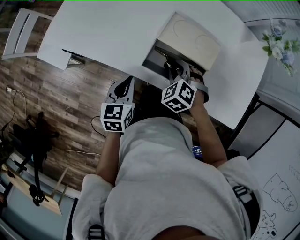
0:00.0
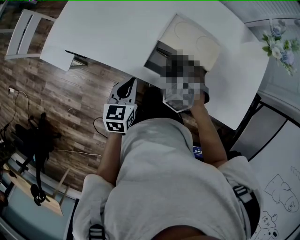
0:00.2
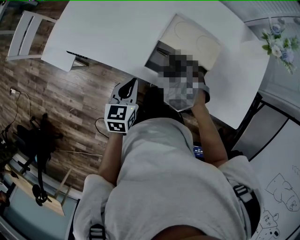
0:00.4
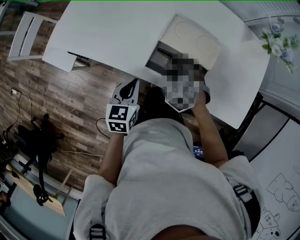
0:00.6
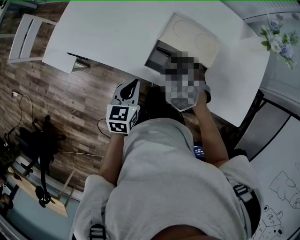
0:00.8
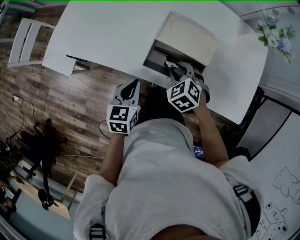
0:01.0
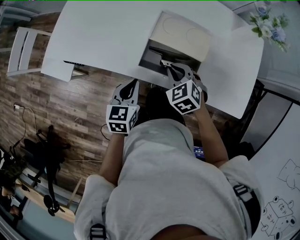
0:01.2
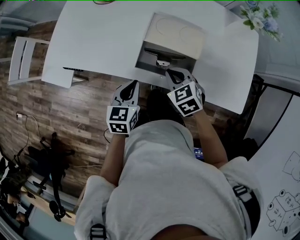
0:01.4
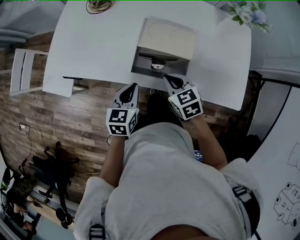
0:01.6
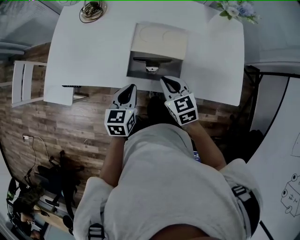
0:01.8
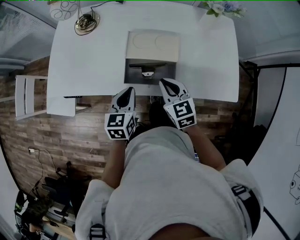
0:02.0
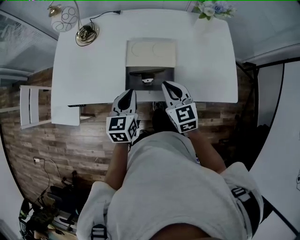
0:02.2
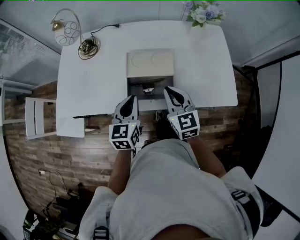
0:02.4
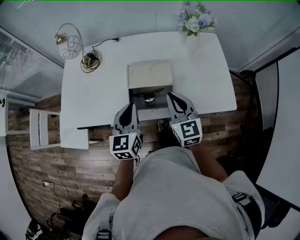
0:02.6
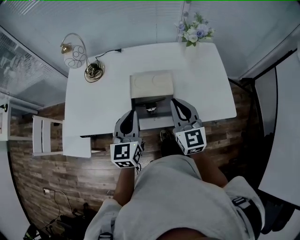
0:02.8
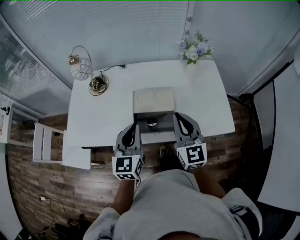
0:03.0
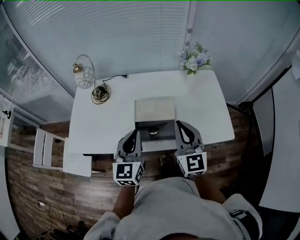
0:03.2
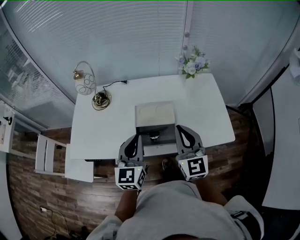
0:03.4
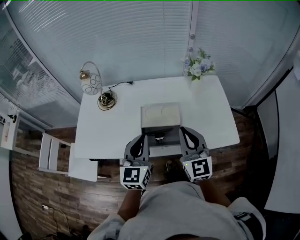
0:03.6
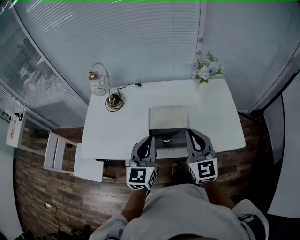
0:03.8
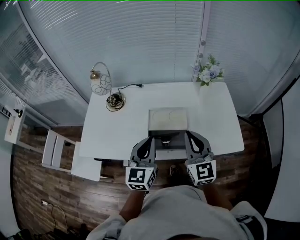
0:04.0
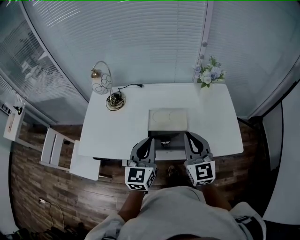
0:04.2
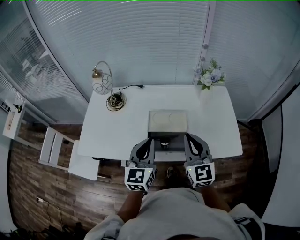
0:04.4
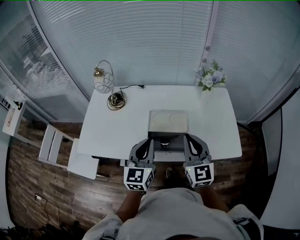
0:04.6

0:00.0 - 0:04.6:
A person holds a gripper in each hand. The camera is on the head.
0:00.0 - 0:01.6: The left gripper travels to the right by approximately 5 cm. The right gripper moves upward and backward, about 10 cm, rolls clockwise, seen from behind, by roughly 40 degrees, and closes up.
0:01.6 - 0:03.0: The grippers both shift upward by roughly 20 cm. The left gripper turns by roughly 30 degrees; the right gripper angles its fingers upward, by about 40 degrees.
0:03.0 - 0:04.6: The grippers move only a little.

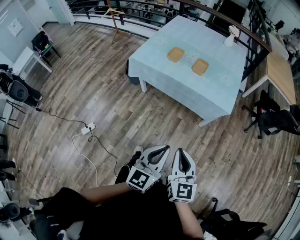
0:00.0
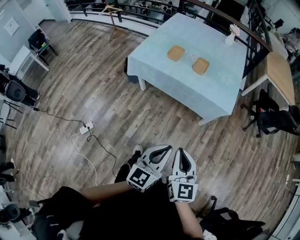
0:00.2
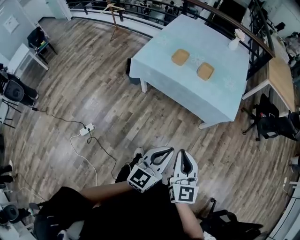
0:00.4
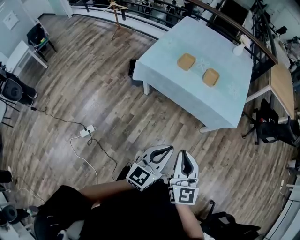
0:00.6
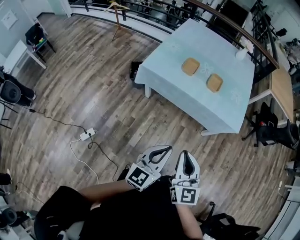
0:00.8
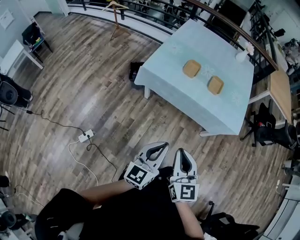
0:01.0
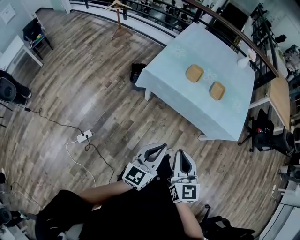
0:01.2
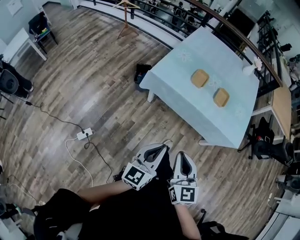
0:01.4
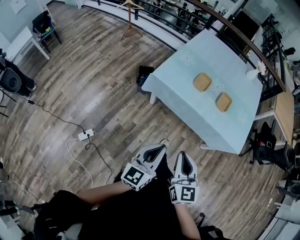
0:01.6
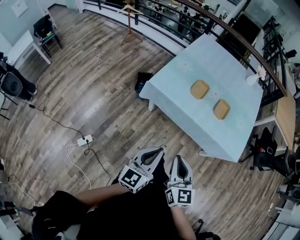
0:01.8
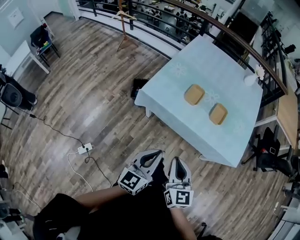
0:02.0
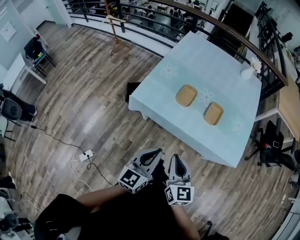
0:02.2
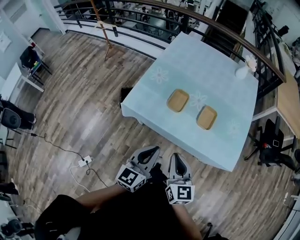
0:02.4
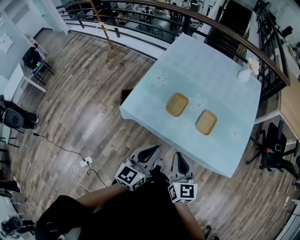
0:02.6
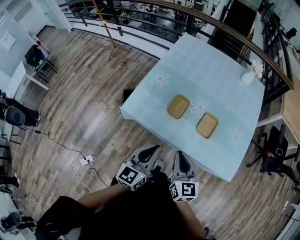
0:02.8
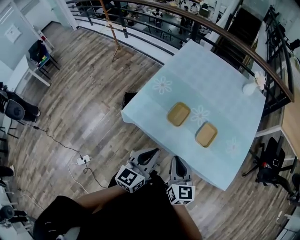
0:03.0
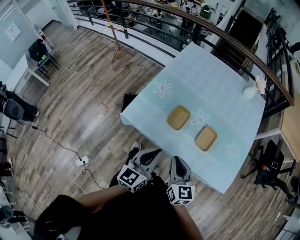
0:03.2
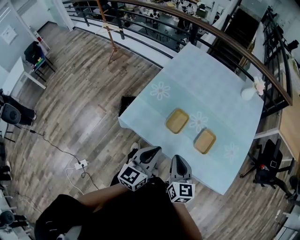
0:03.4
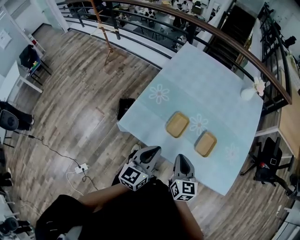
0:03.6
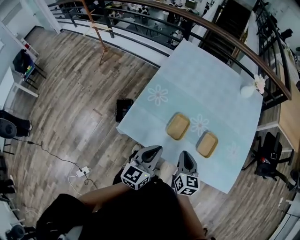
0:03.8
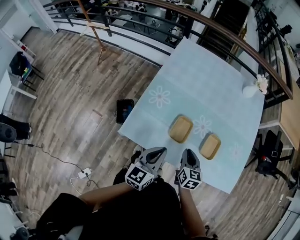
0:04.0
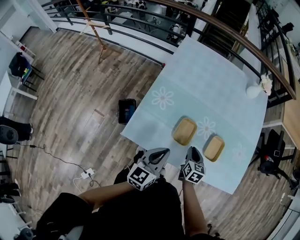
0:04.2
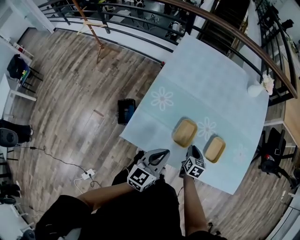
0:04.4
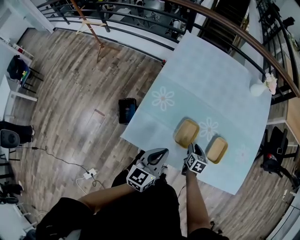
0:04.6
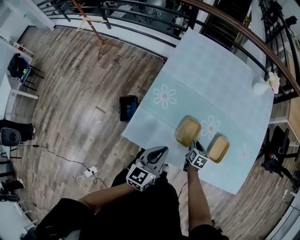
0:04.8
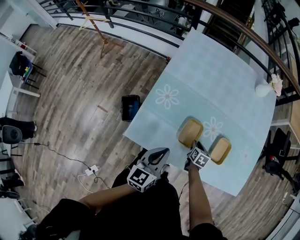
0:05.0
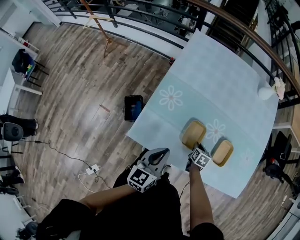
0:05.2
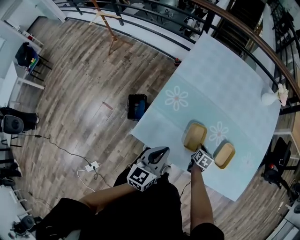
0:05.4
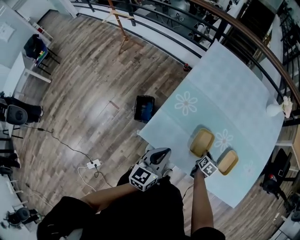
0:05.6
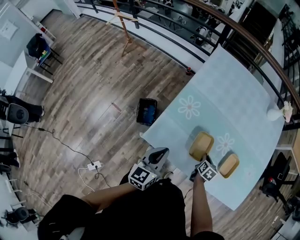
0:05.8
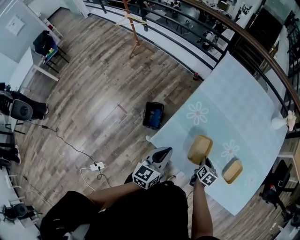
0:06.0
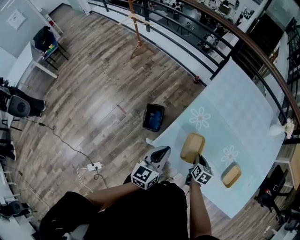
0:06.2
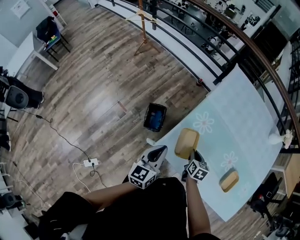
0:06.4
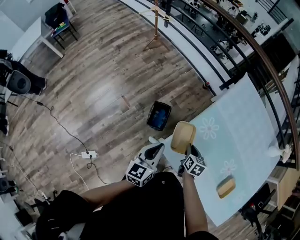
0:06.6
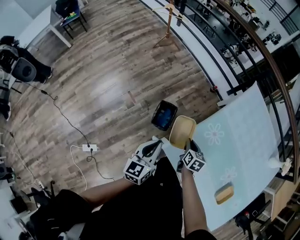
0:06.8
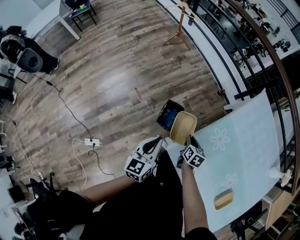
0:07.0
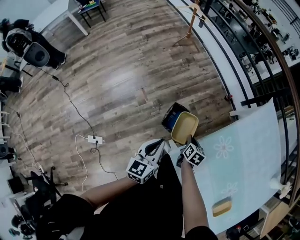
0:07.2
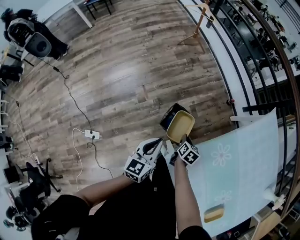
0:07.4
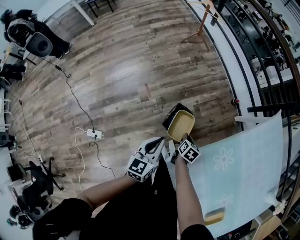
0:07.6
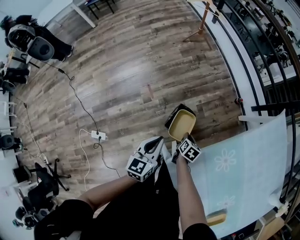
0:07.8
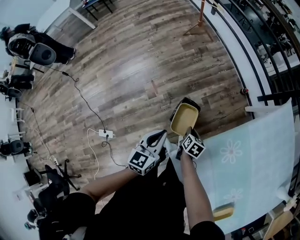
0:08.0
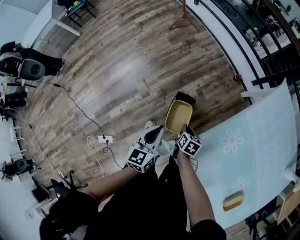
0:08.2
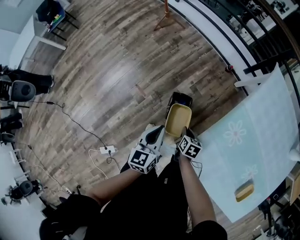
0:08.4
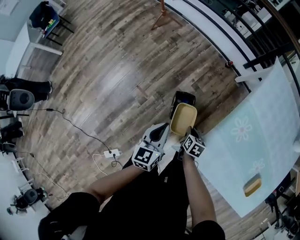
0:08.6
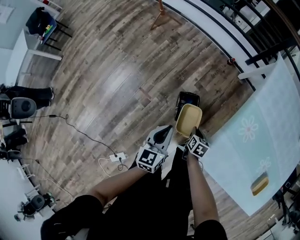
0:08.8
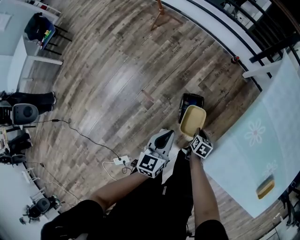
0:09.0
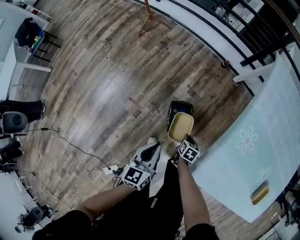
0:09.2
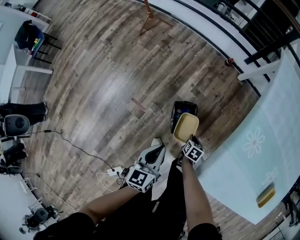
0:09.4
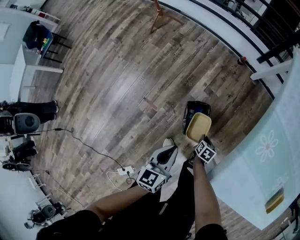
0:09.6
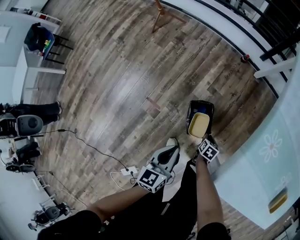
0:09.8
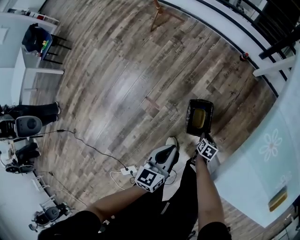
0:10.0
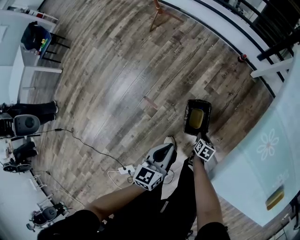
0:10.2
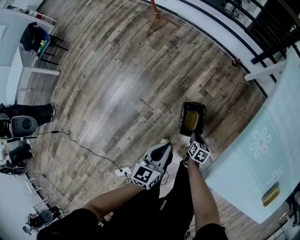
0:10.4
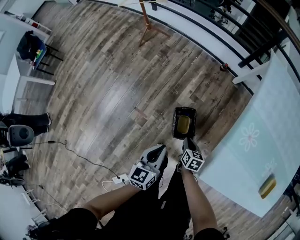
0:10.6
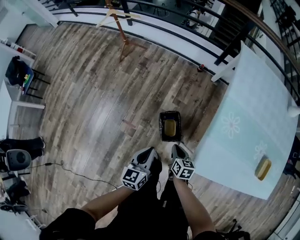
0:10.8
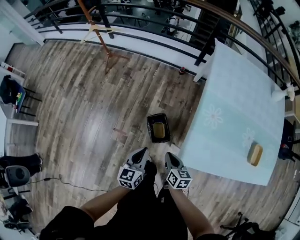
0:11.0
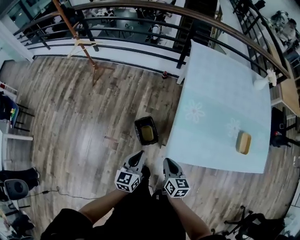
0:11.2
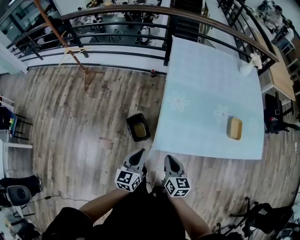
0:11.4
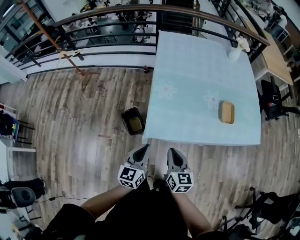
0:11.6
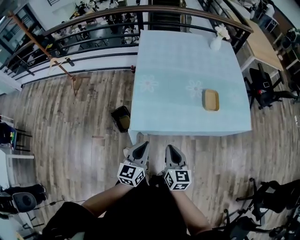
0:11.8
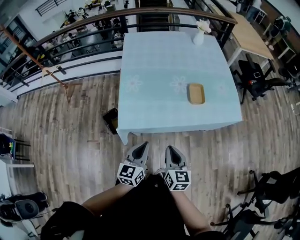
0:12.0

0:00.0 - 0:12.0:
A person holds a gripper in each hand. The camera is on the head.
0:00.0 - 0:01.6: Both grippers travel together to the left and forward, approximately 30 cm.
0:01.6 - 0:03.0: Both grippers travel together forward and to the right, roughly 35 cm.
0:03.0 - 0:04.4: The left gripper moves forward and to the left, roughly 20 cm; the right gripper travels downward and forward by approximately 30 cm, and swivels roughly 40 degrees.
0:04.4 - 0:06.0: The left gripper is displaced to the left by some 15 cm. The right gripper shifts roughly 10 cm to the left.
0:06.0 - 0:07.6: The left gripper ends up some 30 cm from where it was, and rotates some 30 degrees. The right gripper ends up about 50 cm from where it was, and changes its angle by about 30 degrees.
0:07.6 - 0:09.0: The left gripper moves about 15 cm, and turns by about 20 degrees, while the right gripper travels downward by about 10 cm, and turns by roughly 20 degrees.
0:09.0 - 0:10.4: Both grippers travel together downward, roughly 5 cm.
0:10.4 - 0:12.0: Both grippers are carried approximately 50 cm. The left gripper rotates about 40 degrees, while the right gripper tips its fingers upward by roughly 40 degrees.

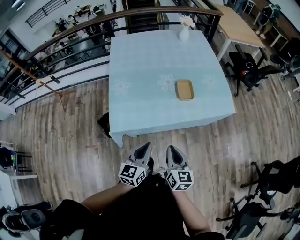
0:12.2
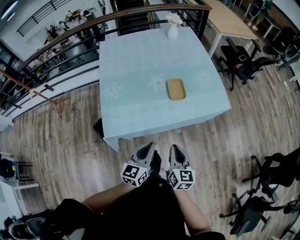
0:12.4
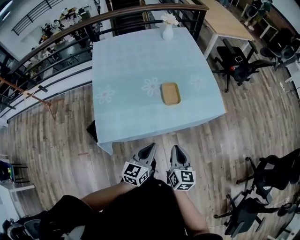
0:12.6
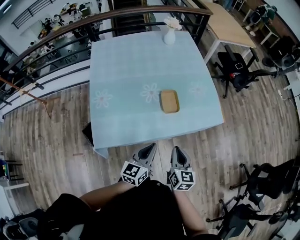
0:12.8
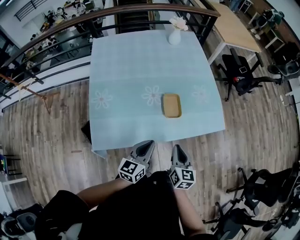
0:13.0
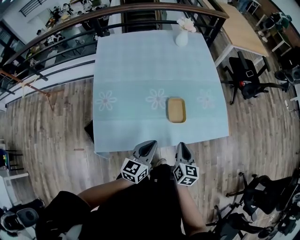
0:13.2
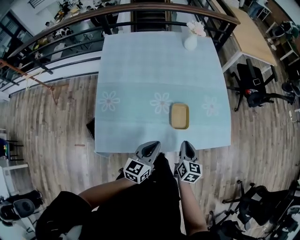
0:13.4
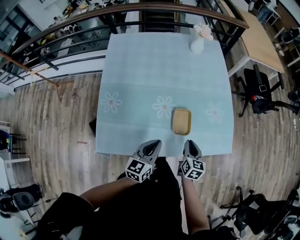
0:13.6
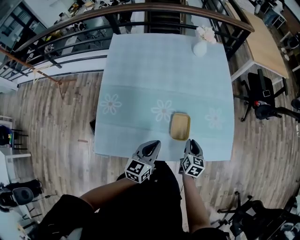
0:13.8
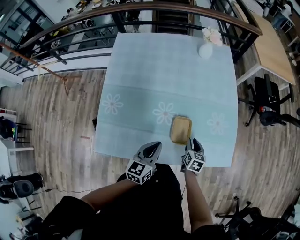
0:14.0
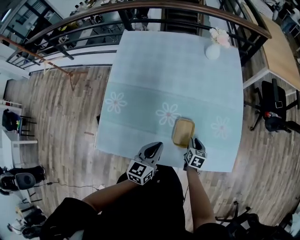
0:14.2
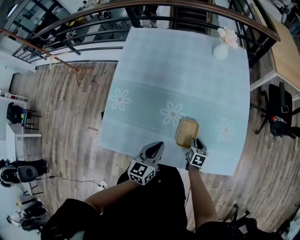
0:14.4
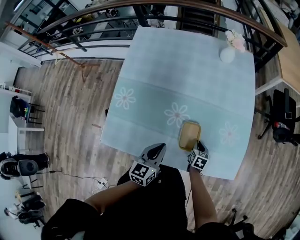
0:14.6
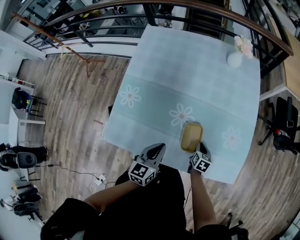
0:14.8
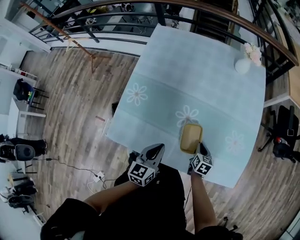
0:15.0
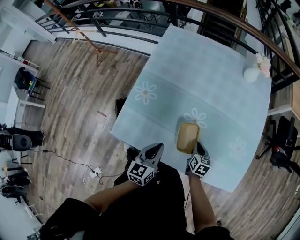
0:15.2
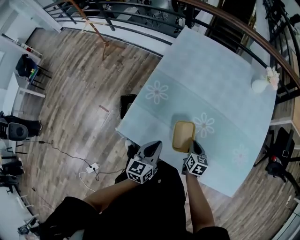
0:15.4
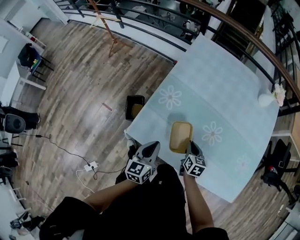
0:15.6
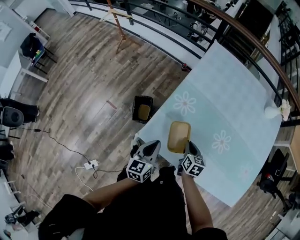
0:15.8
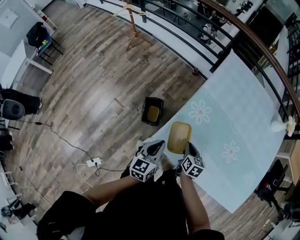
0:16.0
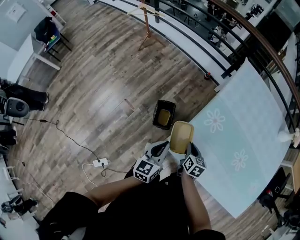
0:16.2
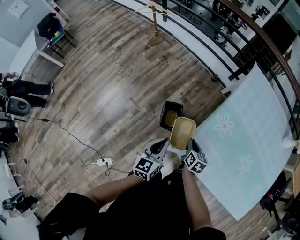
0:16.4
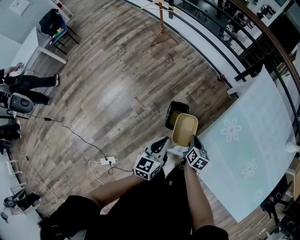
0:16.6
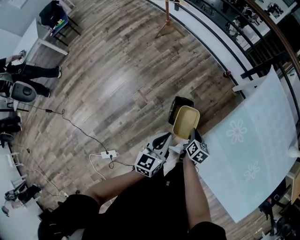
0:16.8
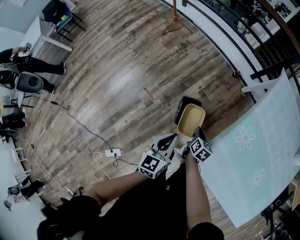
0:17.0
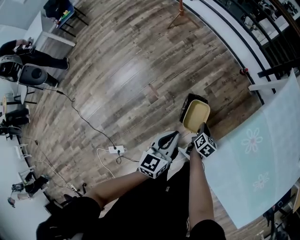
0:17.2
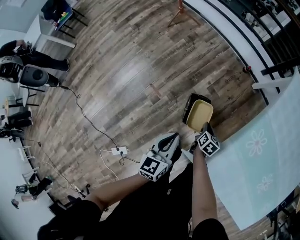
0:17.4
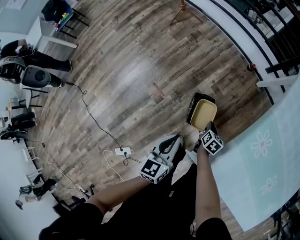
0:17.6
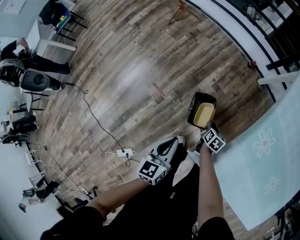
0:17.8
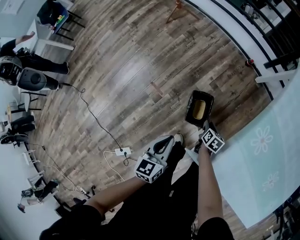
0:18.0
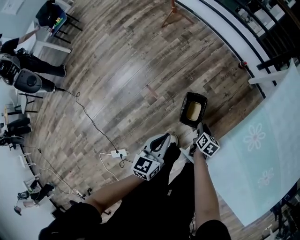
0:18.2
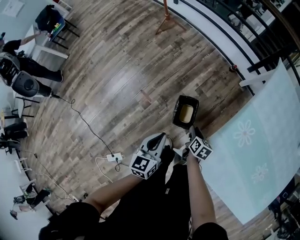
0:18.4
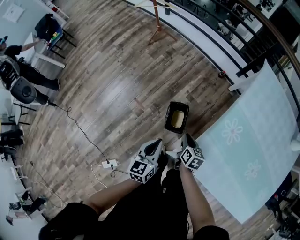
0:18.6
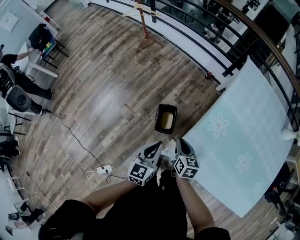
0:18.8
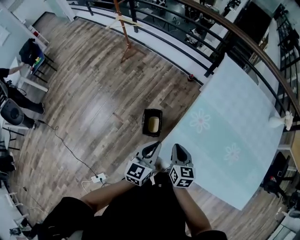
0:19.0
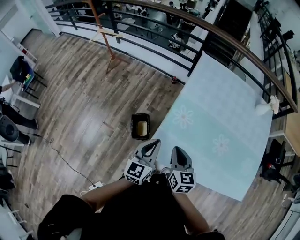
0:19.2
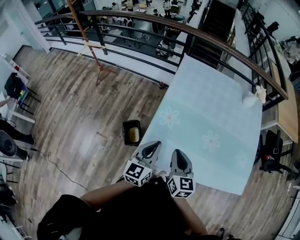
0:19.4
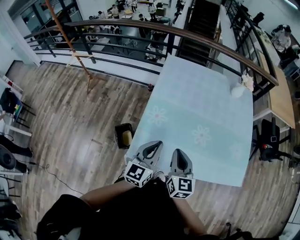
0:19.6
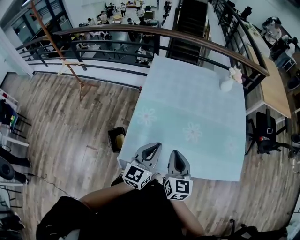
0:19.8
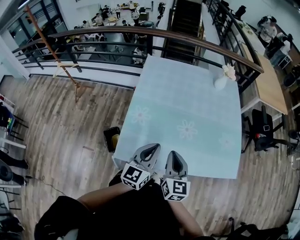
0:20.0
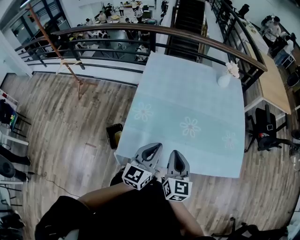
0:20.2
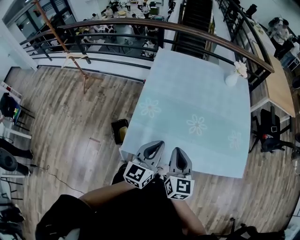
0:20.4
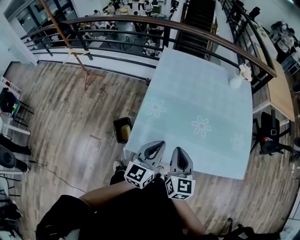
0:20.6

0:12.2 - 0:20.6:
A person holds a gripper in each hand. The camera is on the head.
0:12.2 - 0:13.6: The two grippers go roughly 30 cm forward.
0:13.6 - 0:15.0: The right gripper shifts about 15 cm downward and forward, and changes its angle by approximately 20 degrees, while the left gripper ends up roughly 5 cm from where it was, and changes its angle by some 20 degrees.
0:15.0 - 0:16.4: The pair of grippers is taken some 60 cm. The left gripper changes its angle by about 20 degrees. The right gripper changes its angle by some 20 degrees.
0:16.4 - 0:17.8: The right gripper heads downward and forward, covering about 25 cm; the left gripper travels downward, to the left and forward by roughly 20 cm.
0:17.8 - 0:19.2: The right gripper moves upward, to the right and backward, roughly 50 cm, and points its fingers approximately 30 degrees further upward. Meanwhile the left gripper shifts roughly 35 cm to the right and upward, and rotates roughly 30 degrees.
0:19.2 - 0:20.6: The left gripper heads to the right, covering about 20 cm. Meanwhile the right gripper goes some 20 cm to the right and upward, and changes its angle by about 20 degrees.
